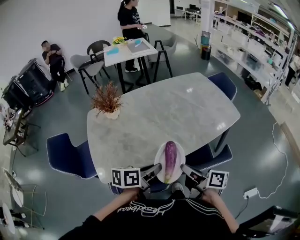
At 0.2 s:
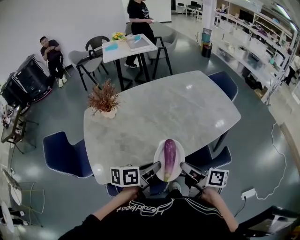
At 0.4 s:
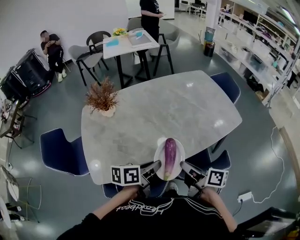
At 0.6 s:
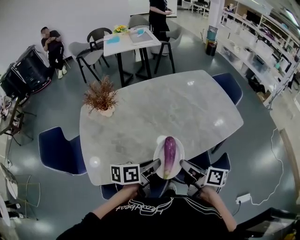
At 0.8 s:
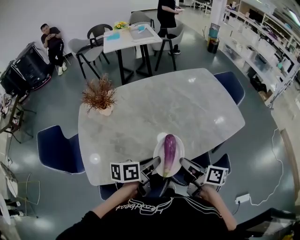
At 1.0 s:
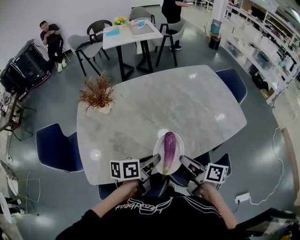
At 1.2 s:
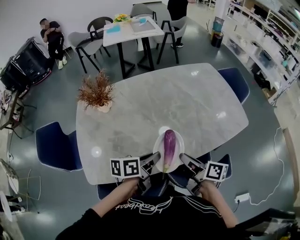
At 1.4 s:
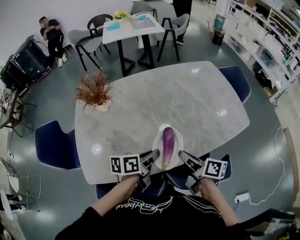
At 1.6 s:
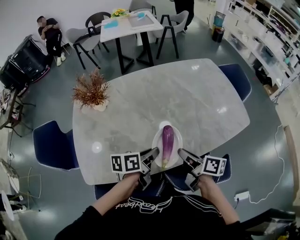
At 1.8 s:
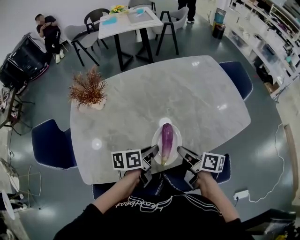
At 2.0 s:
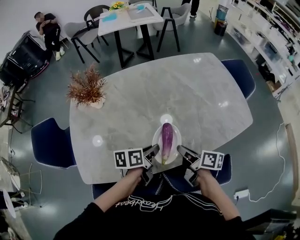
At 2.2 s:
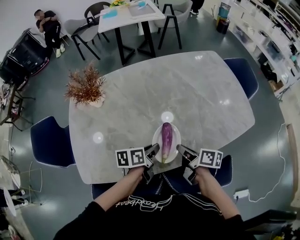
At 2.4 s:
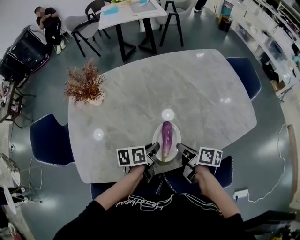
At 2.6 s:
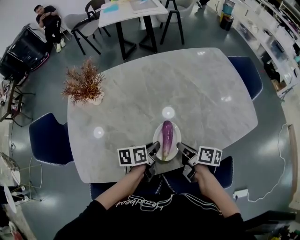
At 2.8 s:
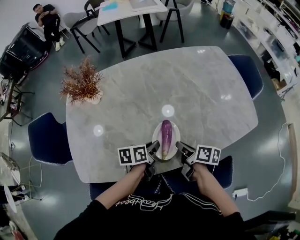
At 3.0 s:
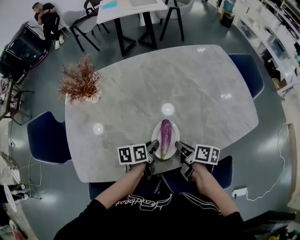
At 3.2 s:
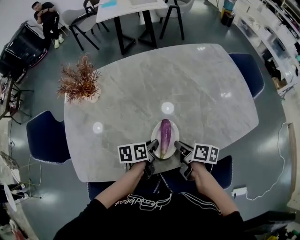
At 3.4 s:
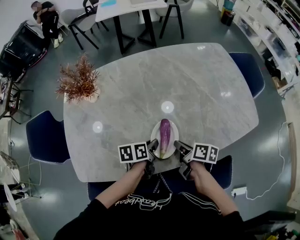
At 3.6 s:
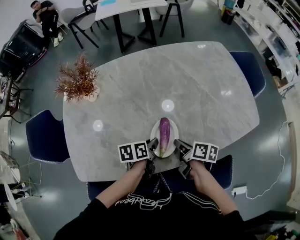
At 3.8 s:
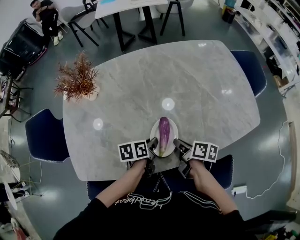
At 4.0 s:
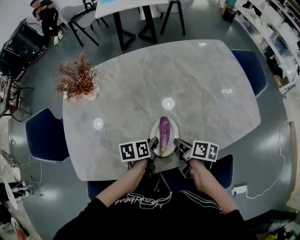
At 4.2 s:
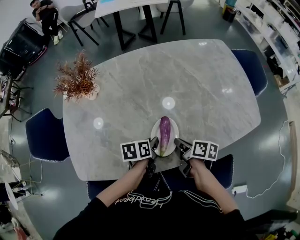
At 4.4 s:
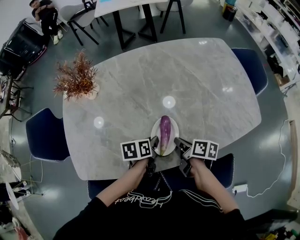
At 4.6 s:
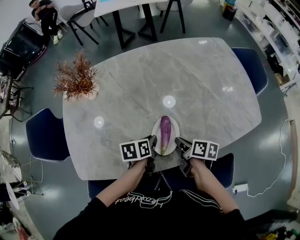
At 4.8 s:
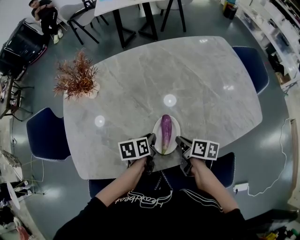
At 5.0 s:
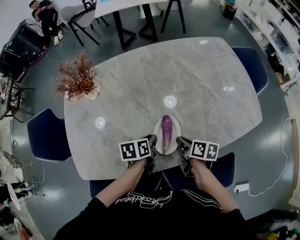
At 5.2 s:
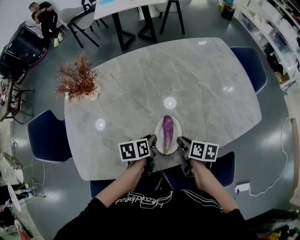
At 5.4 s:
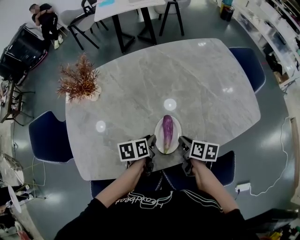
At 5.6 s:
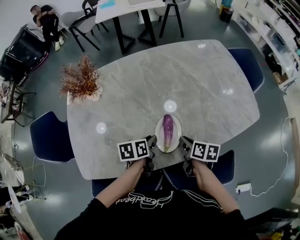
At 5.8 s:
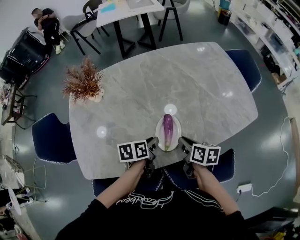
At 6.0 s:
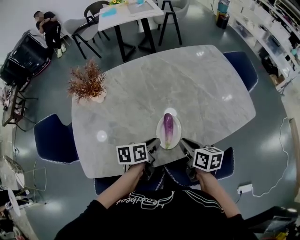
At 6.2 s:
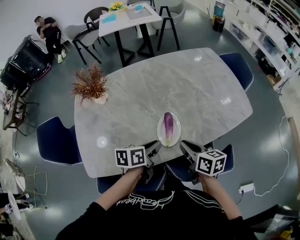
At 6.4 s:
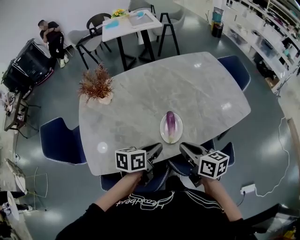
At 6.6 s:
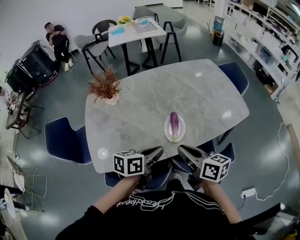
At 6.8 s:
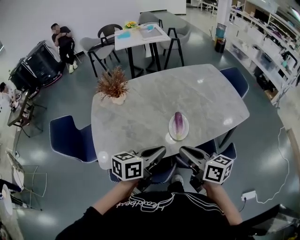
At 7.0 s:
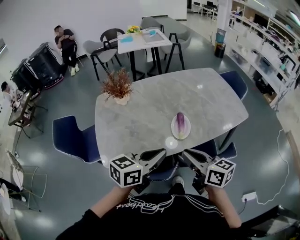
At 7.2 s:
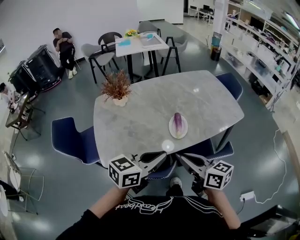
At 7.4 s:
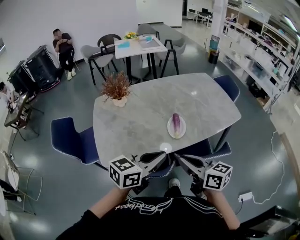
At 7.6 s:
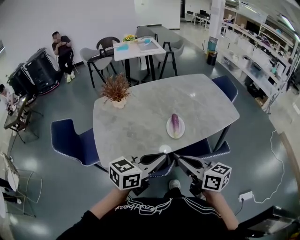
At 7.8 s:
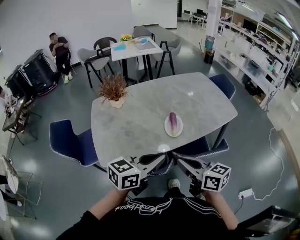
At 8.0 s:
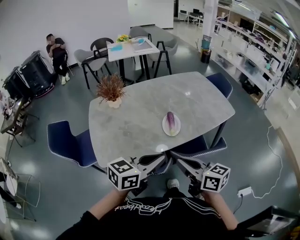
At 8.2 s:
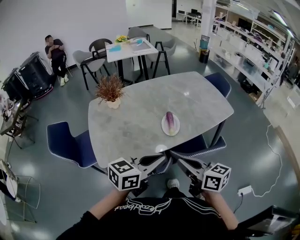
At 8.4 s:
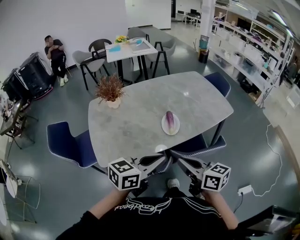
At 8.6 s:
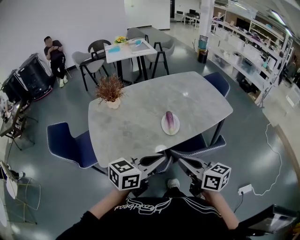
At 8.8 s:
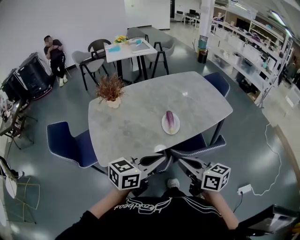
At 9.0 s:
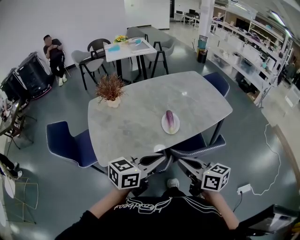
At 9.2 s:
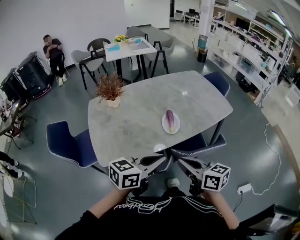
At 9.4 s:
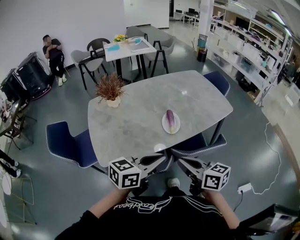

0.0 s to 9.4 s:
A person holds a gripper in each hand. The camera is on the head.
0.0 to 1.6 s: Both grippers move forward and downward, some 20 cm.
1.6 to 3.2 s: Both grippers travel together downward and forward, about 15 cm.
3.2 to 4.8 s: The grippers stay close to where they were, moving slightly.
4.8 to 6.2 s: Both grippers travel together upward and backward, about 15 cm. The left gripper rotates roughly 20 degrees, while the right gripper changes its angle by about 30 degrees.
6.2 to 7.8 s: Both grippers move backward and upward, some 30 cm. The right gripper turns by some 20 degrees. The left gripper changes its angle by about 40 degrees.
7.8 to 9.4 s: The grippers move only a little.

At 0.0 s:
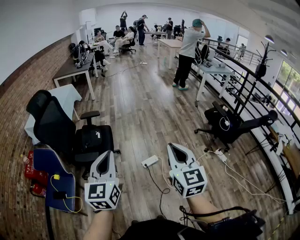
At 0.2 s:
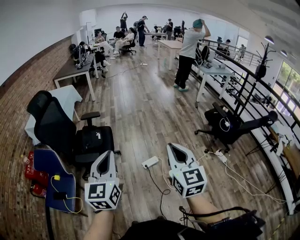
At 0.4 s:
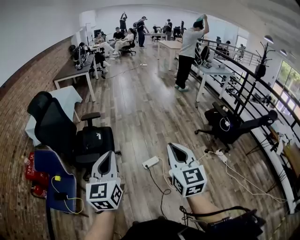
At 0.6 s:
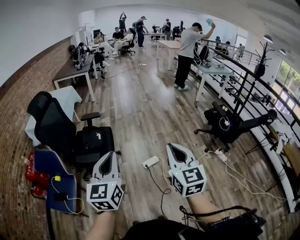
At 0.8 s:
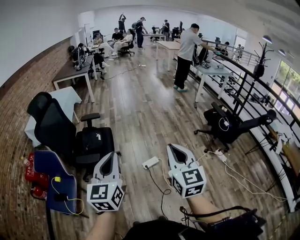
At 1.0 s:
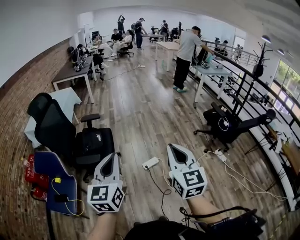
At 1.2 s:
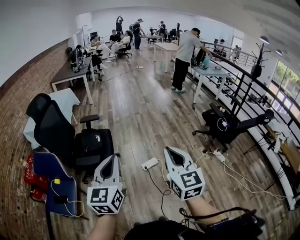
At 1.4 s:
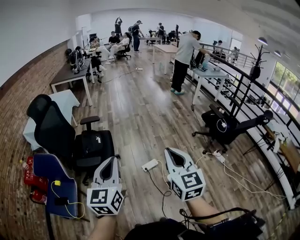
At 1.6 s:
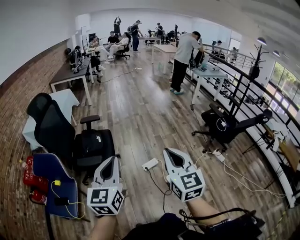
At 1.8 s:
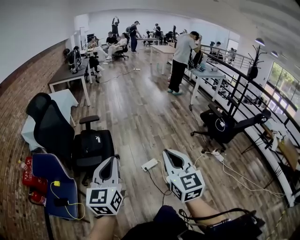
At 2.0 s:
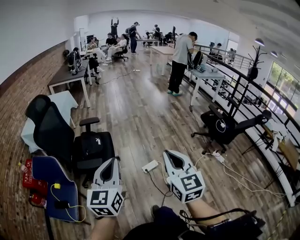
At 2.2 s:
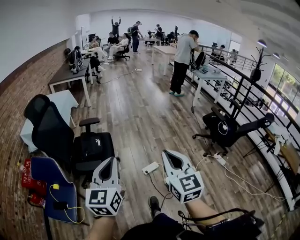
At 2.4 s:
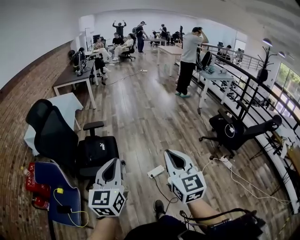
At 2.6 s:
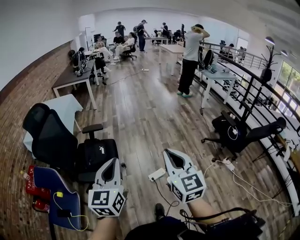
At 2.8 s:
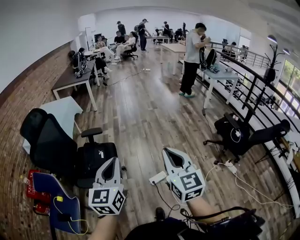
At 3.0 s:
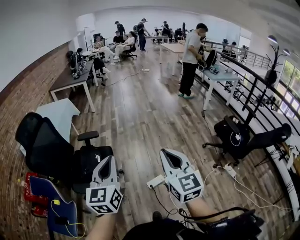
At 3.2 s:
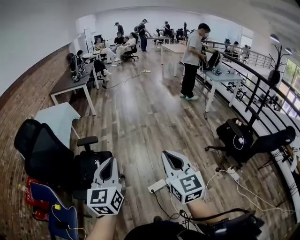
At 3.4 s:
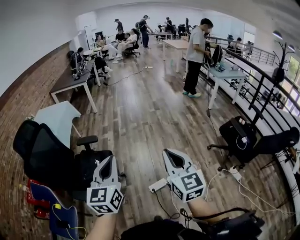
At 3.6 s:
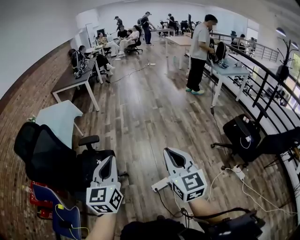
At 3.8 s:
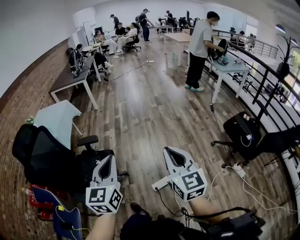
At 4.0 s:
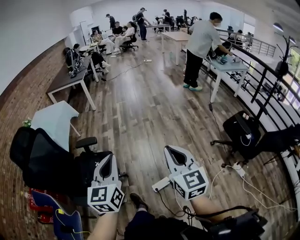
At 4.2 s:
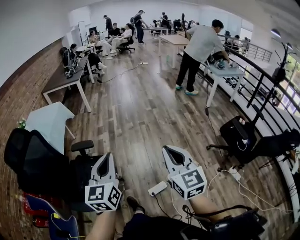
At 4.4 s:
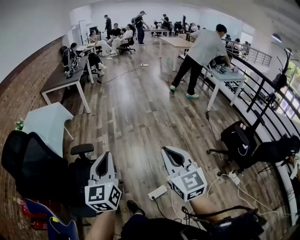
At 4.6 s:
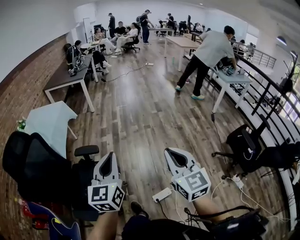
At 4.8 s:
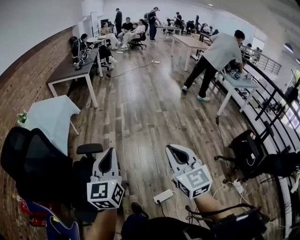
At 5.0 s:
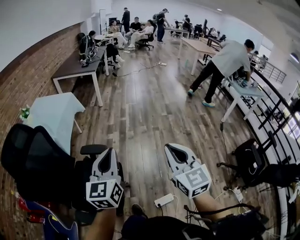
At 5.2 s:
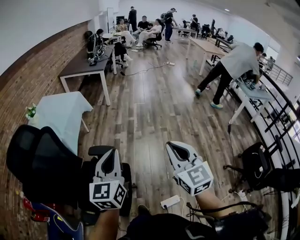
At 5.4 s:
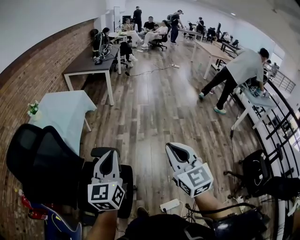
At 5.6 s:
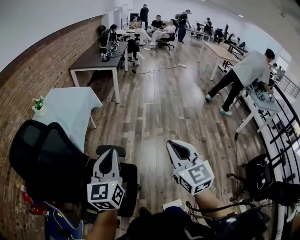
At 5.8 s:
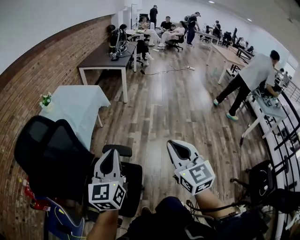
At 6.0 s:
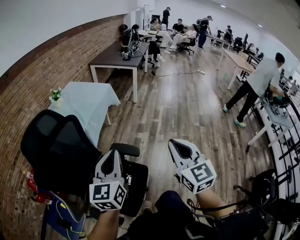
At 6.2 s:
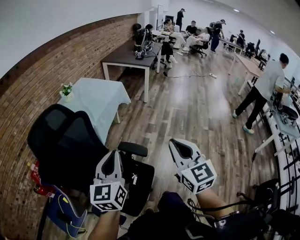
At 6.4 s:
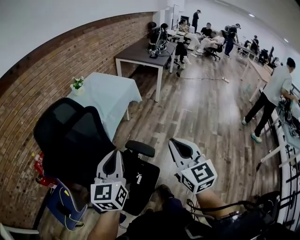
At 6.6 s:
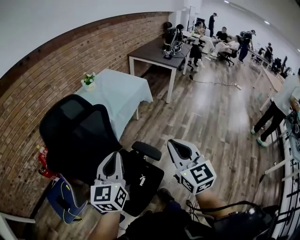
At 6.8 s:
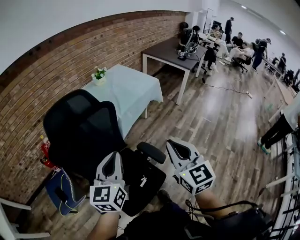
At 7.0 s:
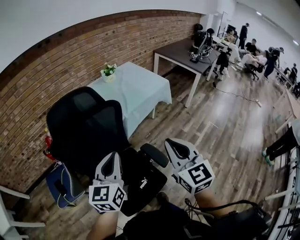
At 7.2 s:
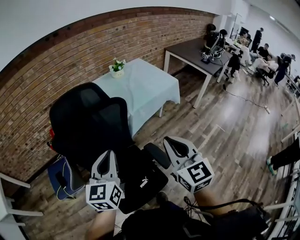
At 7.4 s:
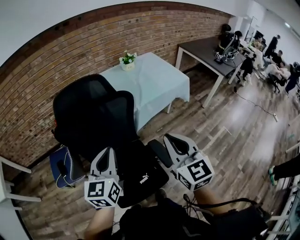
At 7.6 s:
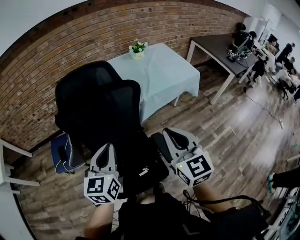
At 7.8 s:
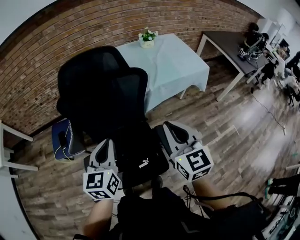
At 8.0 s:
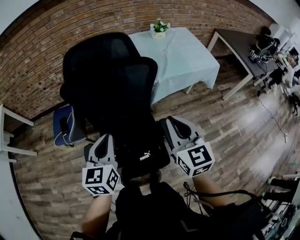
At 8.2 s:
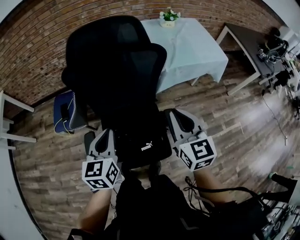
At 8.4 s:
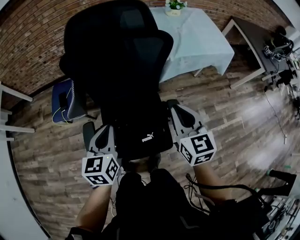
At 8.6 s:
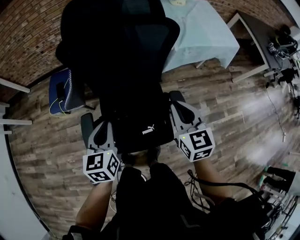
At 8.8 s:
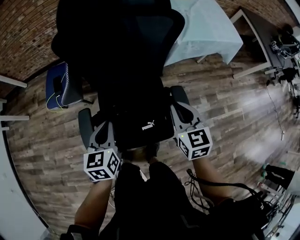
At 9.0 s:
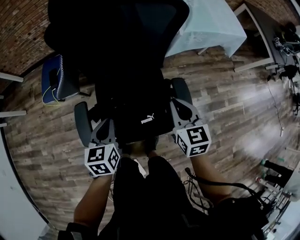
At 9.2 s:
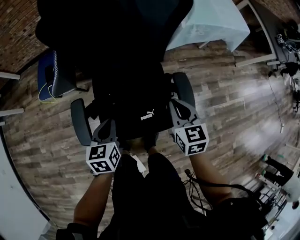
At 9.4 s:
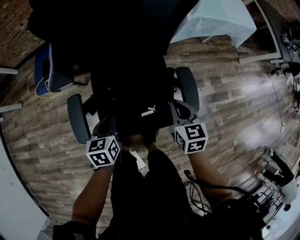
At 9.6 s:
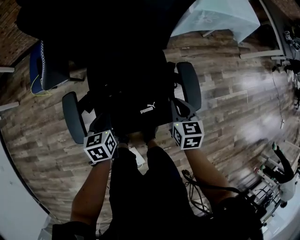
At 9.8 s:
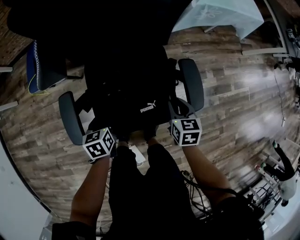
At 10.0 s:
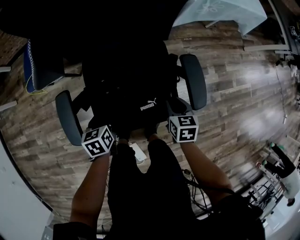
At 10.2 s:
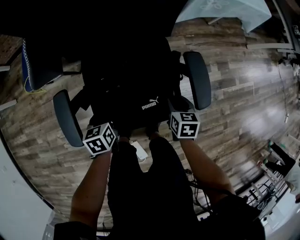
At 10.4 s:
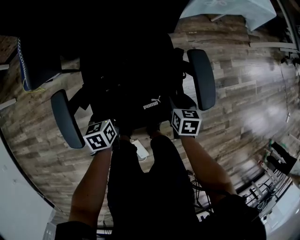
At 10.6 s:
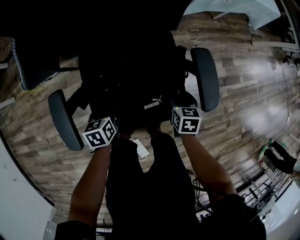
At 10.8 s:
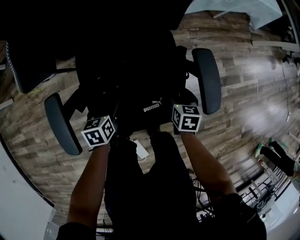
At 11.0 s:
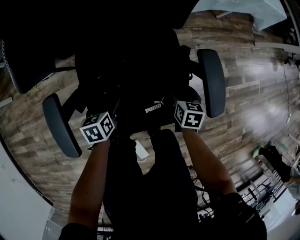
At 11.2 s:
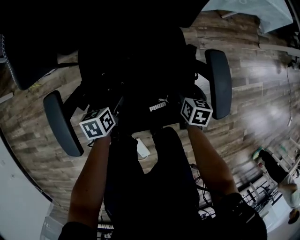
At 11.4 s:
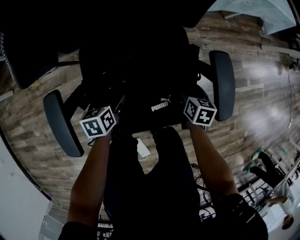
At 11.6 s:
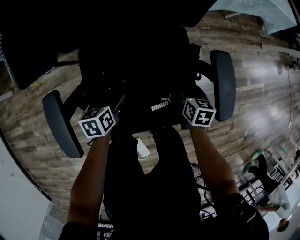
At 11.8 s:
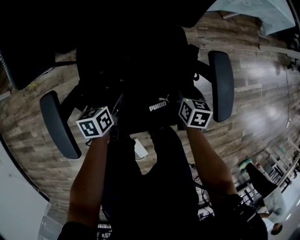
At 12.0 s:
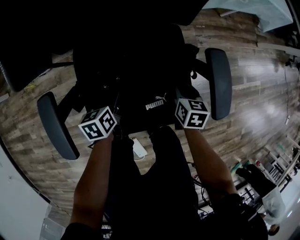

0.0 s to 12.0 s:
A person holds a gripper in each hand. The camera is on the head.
0.0 to 1.6 s: The right gripper is displaced to the left by roughly 5 cm.
1.6 to 3.0 s: The grippers both shift forward by some 25 cm.
3.0 to 4.4 s: The two grippers go some 20 cm forward.
4.4 to 6.0 s: The left gripper heads to the left and forward, covering about 30 cm, and turns by about 20 degrees. Meanwhile the right gripper heads forward and to the left, covering some 35 cm, and changes its angle by roughly 20 degrees.
6.0 to 7.6 s: The right gripper shifts by roughly 25 cm, and changes its angle by about 50 degrees. The left gripper changes place by some 15 cm, and turns by some 50 degrees.
7.6 to 9.0 s: Both grippers travel together downward, approximately 25 cm. The right gripper changes its angle by approximately 20 degrees. Meanwhile the left gripper rotates approximately 30 degrees.
9.0 to 10.4 s: Both grippers move downward, some 30 cm. The left gripper rotates roughly 20 degrees. The right gripper swivels about 30 degrees, and opens.
10.4 to 12.0 s: The right gripper is displaced forward by some 5 cm, and opens and closes again, while the left gripper heads downward, covering some 5 cm, and opens, then closes again.

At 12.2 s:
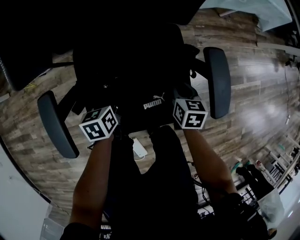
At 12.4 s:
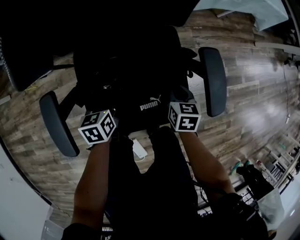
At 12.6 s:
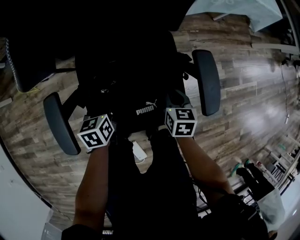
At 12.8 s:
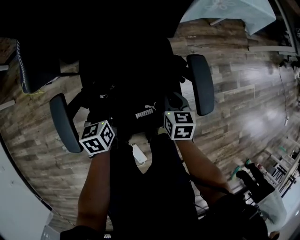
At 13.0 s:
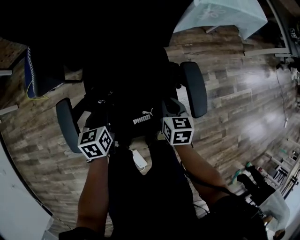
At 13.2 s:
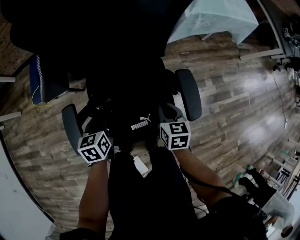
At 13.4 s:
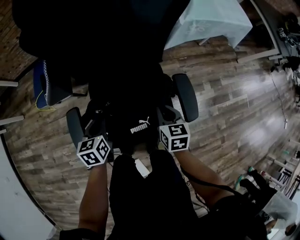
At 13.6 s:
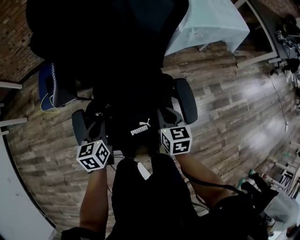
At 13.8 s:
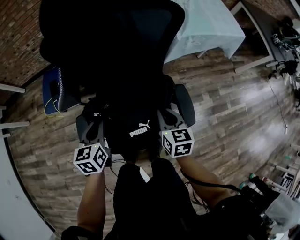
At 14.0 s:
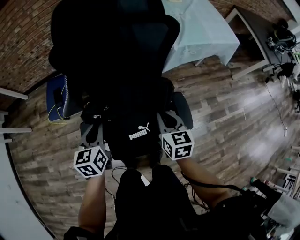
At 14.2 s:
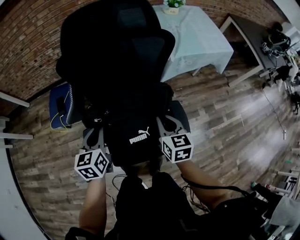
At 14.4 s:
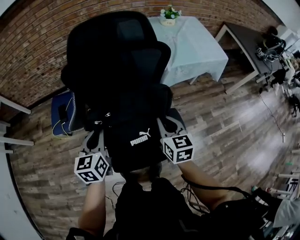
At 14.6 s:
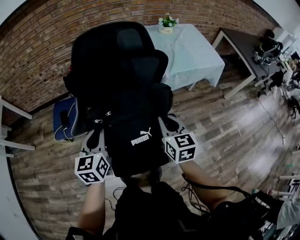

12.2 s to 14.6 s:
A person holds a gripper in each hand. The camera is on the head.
12.2 to 13.4 s: Both grippers move upward, some 20 cm.
13.4 to 14.6 s: Both grippers travel together upward, approximately 25 cm. The left gripper swivels roughly 30 degrees.
